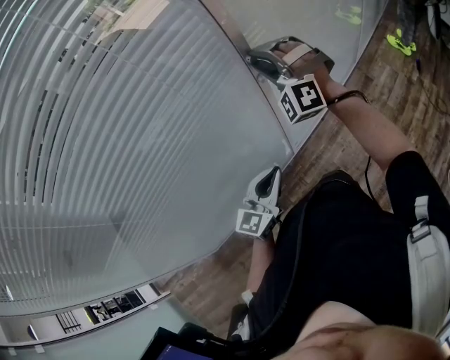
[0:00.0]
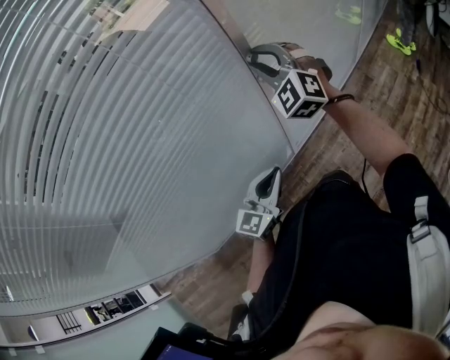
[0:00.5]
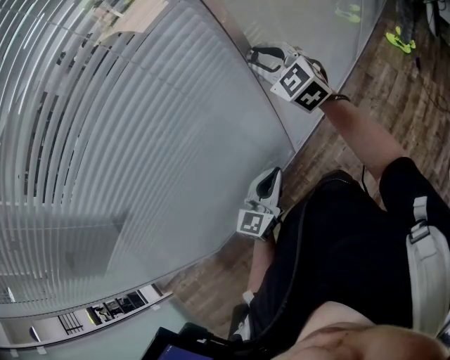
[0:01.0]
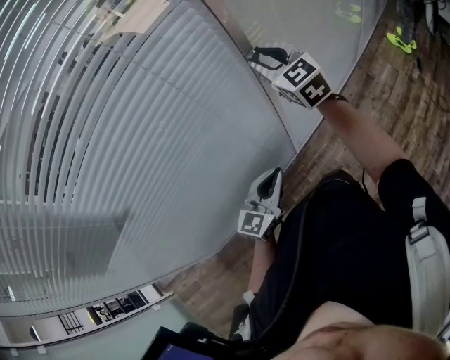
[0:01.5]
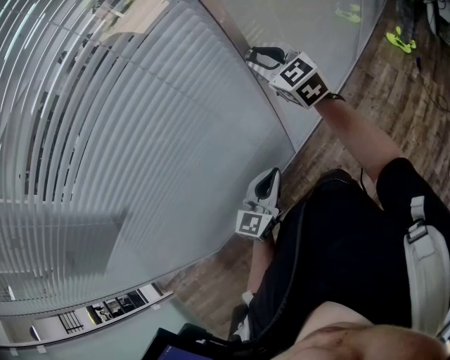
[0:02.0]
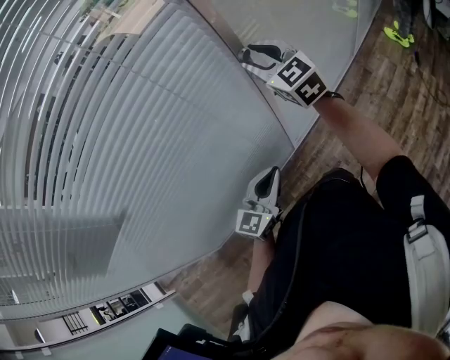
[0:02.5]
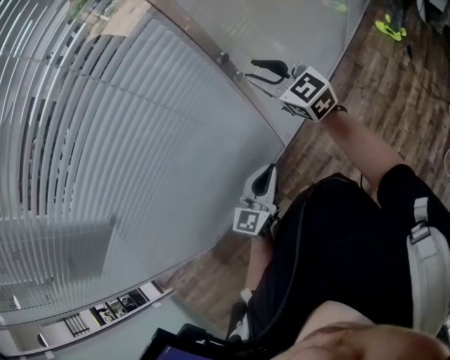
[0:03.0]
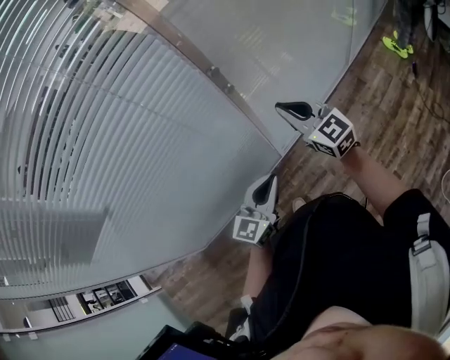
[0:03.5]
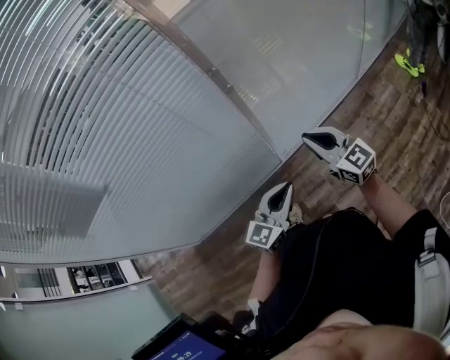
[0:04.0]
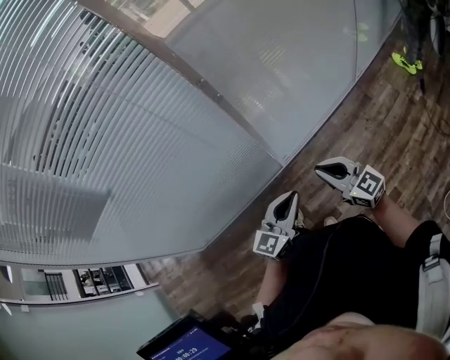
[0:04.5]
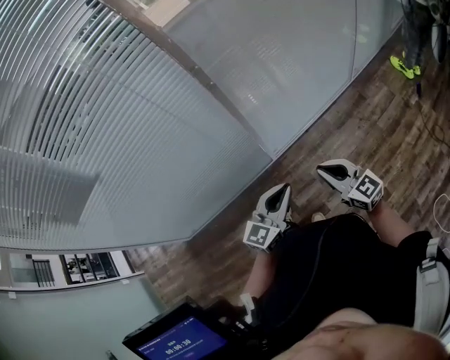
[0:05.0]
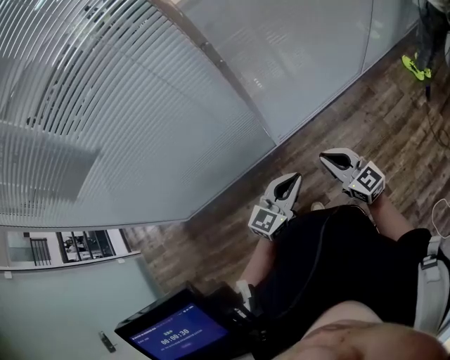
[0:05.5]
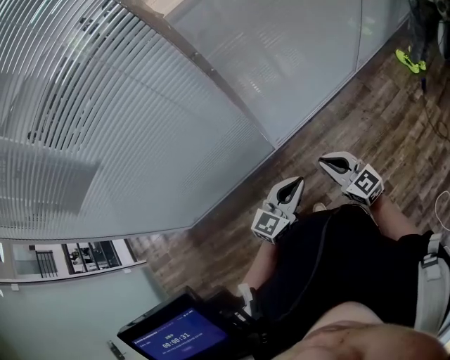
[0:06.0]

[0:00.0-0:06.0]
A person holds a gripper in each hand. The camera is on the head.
0:00.0 to 0:02.0: The right gripper twists about 70 degrees clockwise, seen from behind.
0:02.0 to 0:04.0: The left gripper heads to the right and backward, covering about 20 cm, while the right gripper travels backward, to the right and downward by some 30 cm, turns by approximately 30 degrees, and closes up.
0:04.0 to 0:06.0: The right gripper moves backward, downward and to the right, about 15 cm; the left gripper shifts some 10 cm to the right and backward.

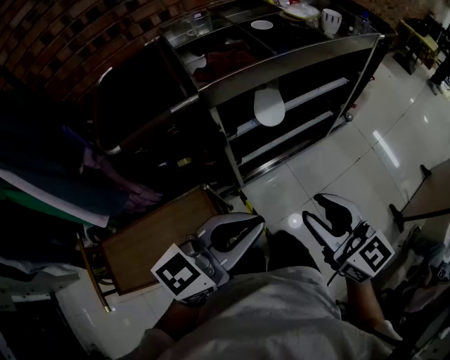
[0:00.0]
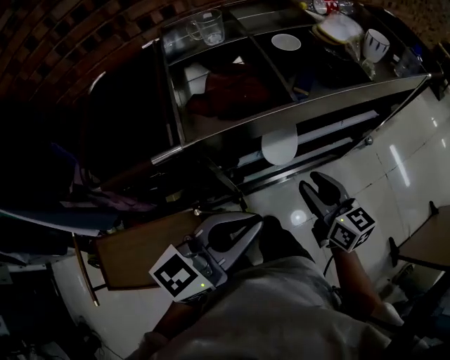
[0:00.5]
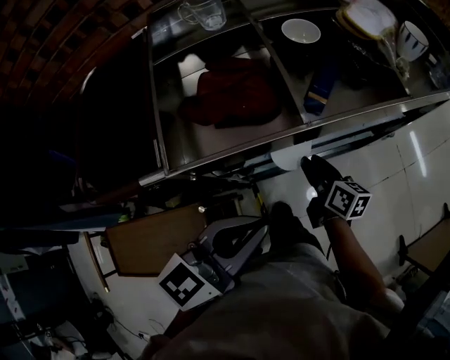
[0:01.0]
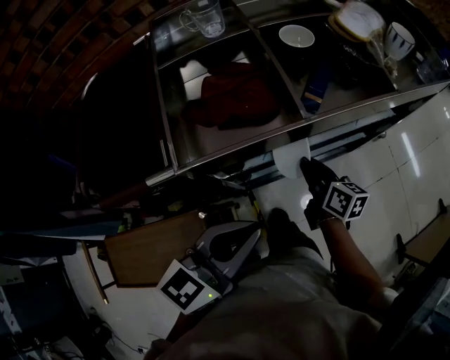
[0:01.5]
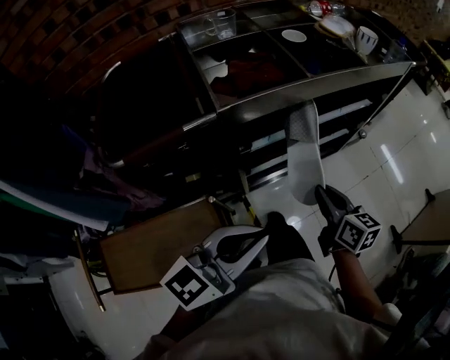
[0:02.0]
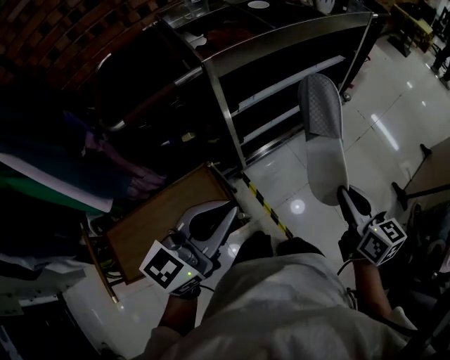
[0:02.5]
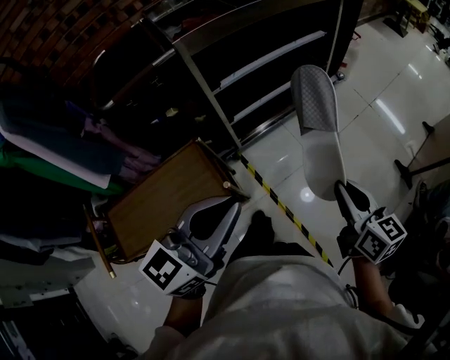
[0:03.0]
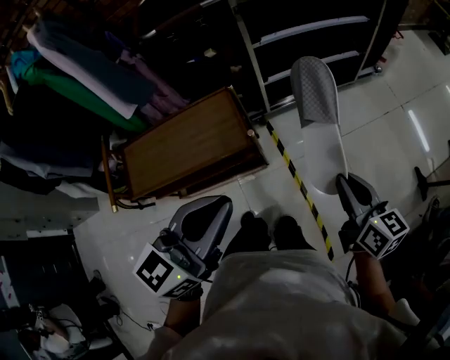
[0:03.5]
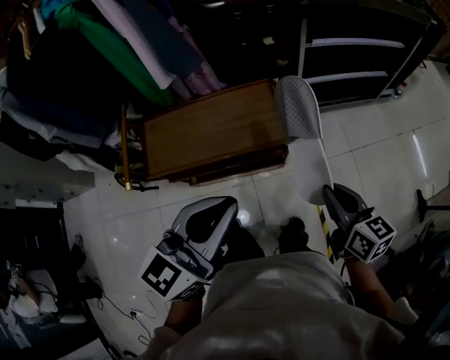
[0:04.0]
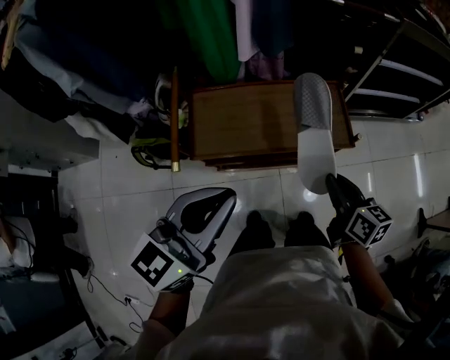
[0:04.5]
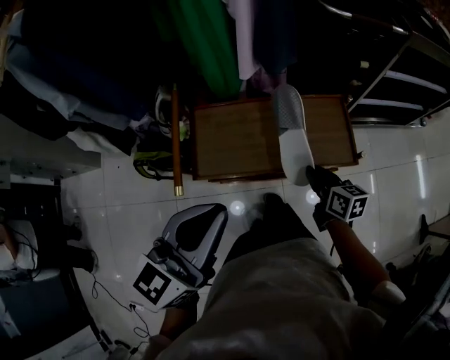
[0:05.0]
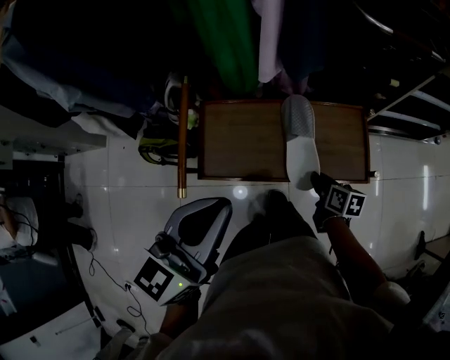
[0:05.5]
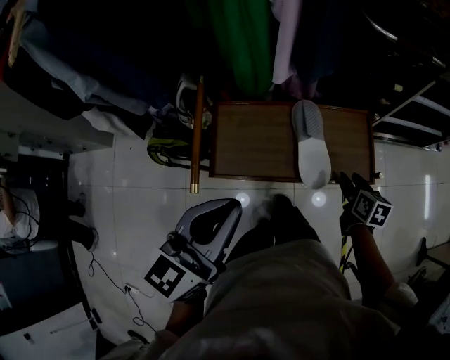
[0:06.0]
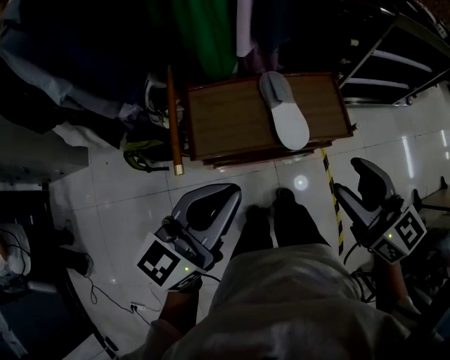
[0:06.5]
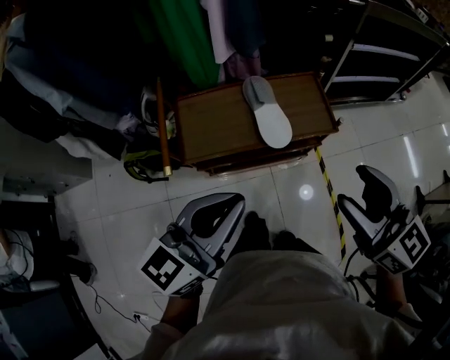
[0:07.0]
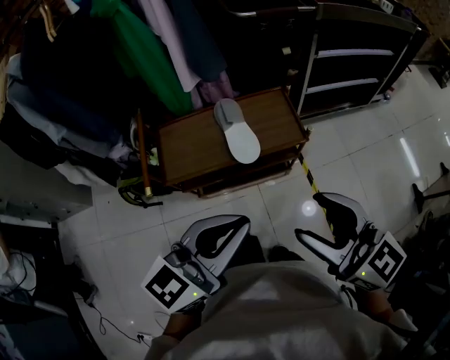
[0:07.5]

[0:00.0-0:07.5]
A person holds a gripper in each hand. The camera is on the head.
0:00.0 to 0:02.0: The left gripper travels forward and back again, about 25 cm each way. Meanwhile the right gripper travels forward and downward by roughly 20 cm, turns by approximately 30 degrees, and closes up.
0:02.0 to 0:04.0: The pair of grippers is taken about 40 cm. The left gripper changes its angle by some 30 degrees.
0:04.0 to 0:05.5: The right gripper shifts roughly 40 cm to the left, downward and forward, and swivels approximately 30 degrees. The left gripper shifts roughly 30 cm to the left and forward.
0:05.5 to 0:07.5: The right gripper heads upward and backward, covering about 50 cm, angles its fingers upward, by roughly 40 degrees, and opens. The left gripper shifts approximately 25 cm backward and to the right, and swivels some 30 degrees.

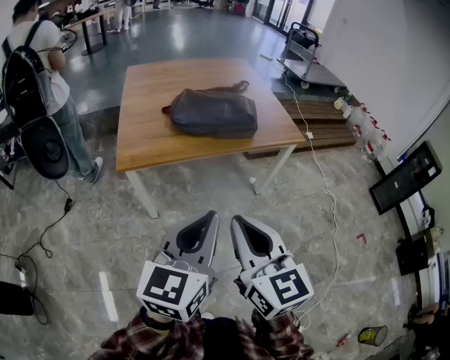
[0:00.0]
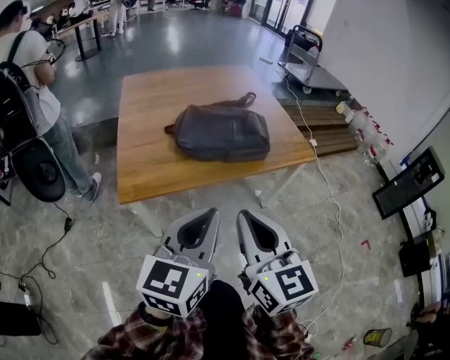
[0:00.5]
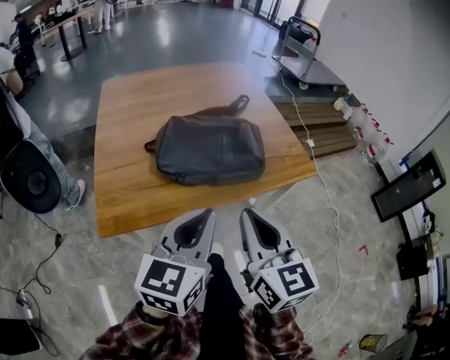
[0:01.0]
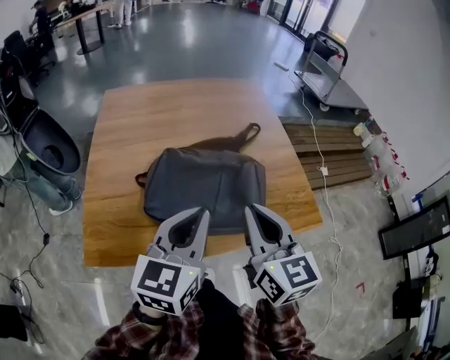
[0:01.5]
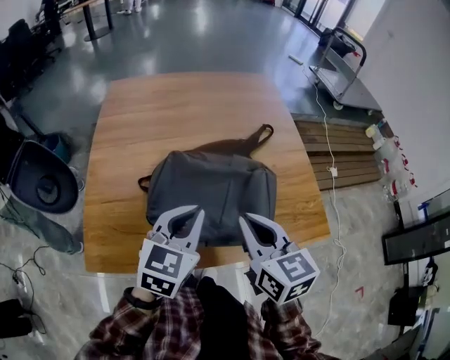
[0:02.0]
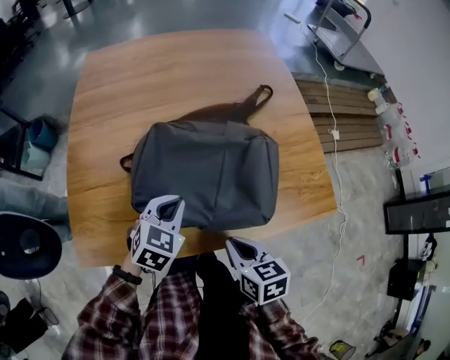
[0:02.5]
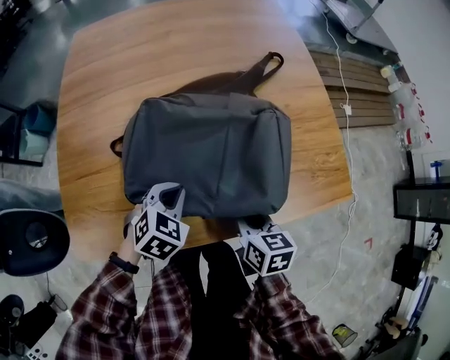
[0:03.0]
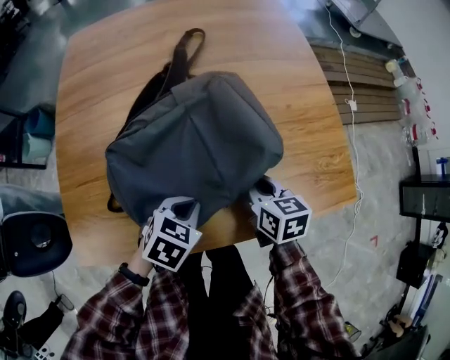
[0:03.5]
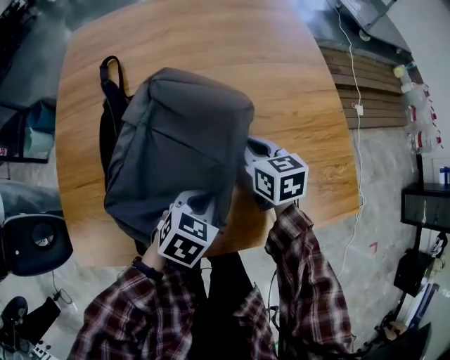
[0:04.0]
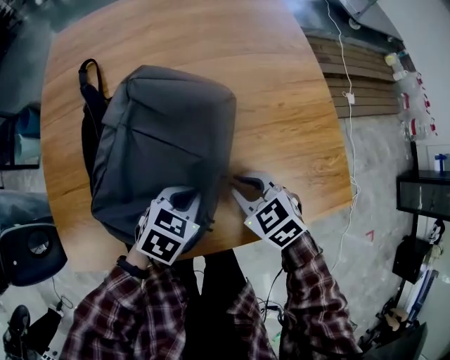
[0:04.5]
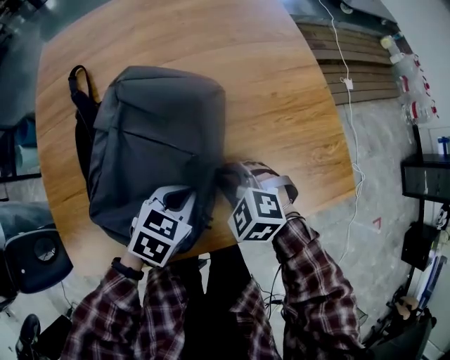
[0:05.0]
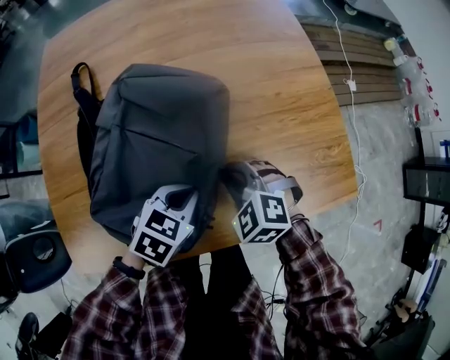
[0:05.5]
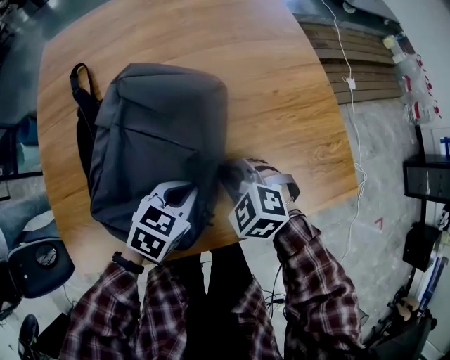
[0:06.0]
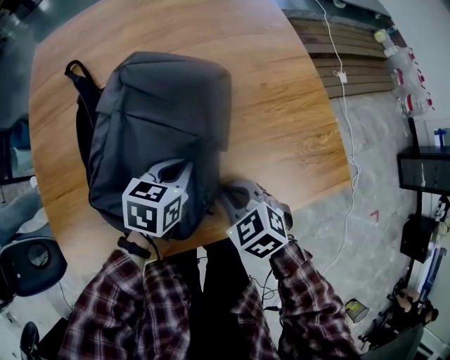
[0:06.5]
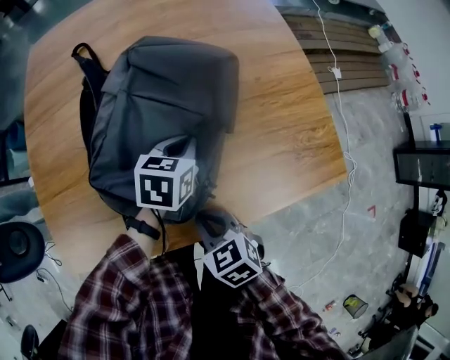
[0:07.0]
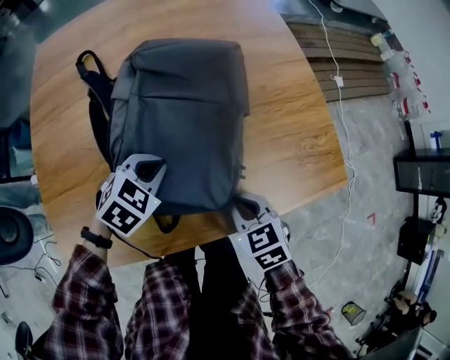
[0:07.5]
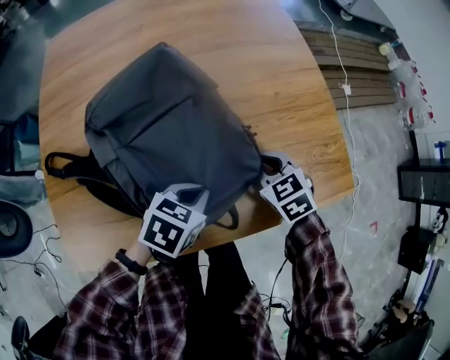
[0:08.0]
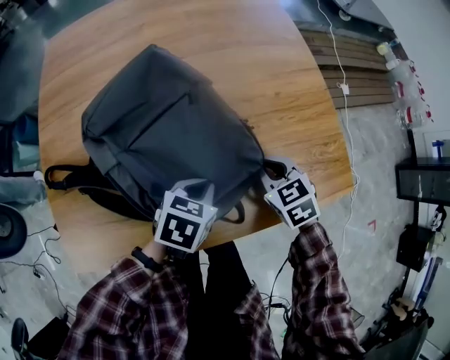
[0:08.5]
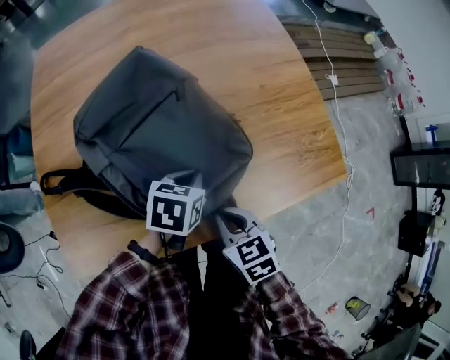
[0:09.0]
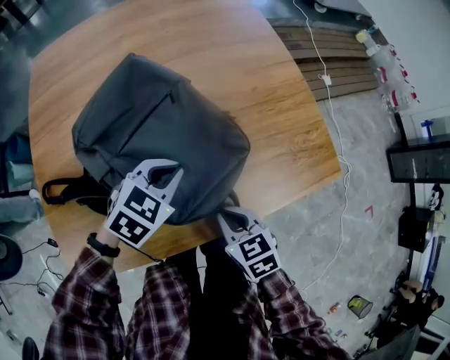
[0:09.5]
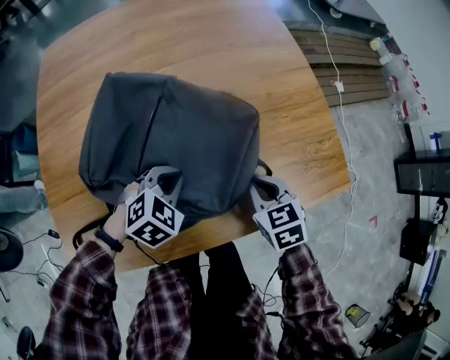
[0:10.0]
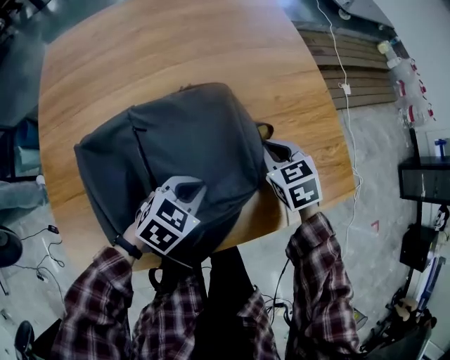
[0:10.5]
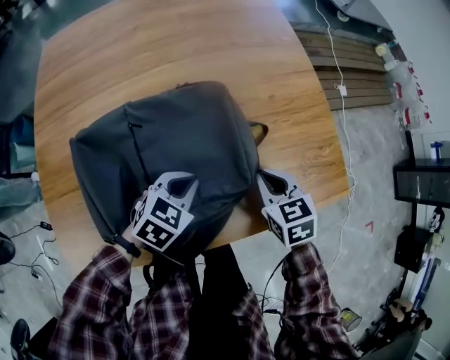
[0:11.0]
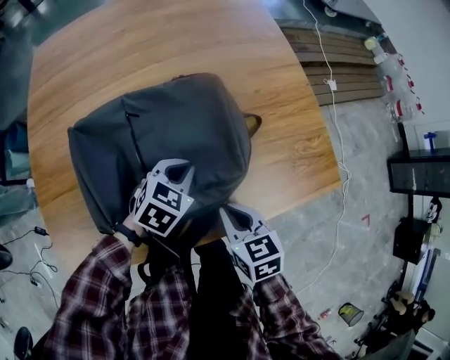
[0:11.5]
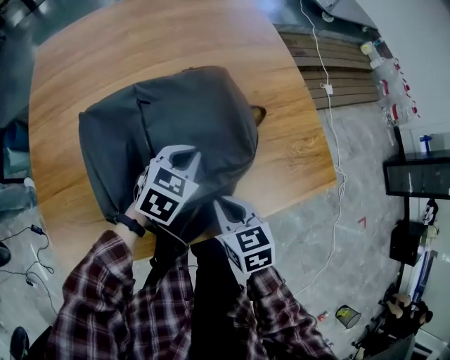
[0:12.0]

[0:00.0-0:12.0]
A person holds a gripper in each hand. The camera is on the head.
0:00.0 to 0:02.0: The pair of grippers is taken forward, roughly 50 cm. The left gripper swivels approximately 20 degrees.
0:02.0 to 0:04.0: The right gripper is displaced downward and forward by roughly 30 cm; the left gripper travels downward by roughly 25 cm, and points its fingers roughly 30 degrees further downward.
0:04.0 to 0:06.0: The right gripper is displaced backward by some 10 cm, and twists about 50 degrees counterclockwise, seen from behind.
0:06.0 to 0:08.0: The left gripper reaches about 10 cm forward, then returns. Meanwhile the right gripper heads to the right, covering about 10 cm, reaches roughly 15 cm backward, then returns, and swivels approximately 30 degrees.
0:08.0 to 0:10.0: The right gripper moves approximately 15 cm backward and comes back. Meanwhile the left gripper heads to the left, covering some 5 cm, and swivels some 40 degrees.
0:10.0 to 0:12.0: The right gripper is displaced backward by approximately 5 cm. The left gripper travels to the right by approximately 5 cm, and changes its angle by roughly 20 degrees.

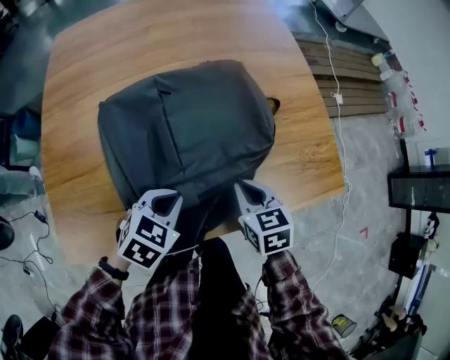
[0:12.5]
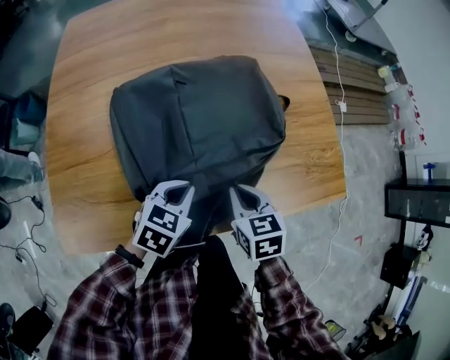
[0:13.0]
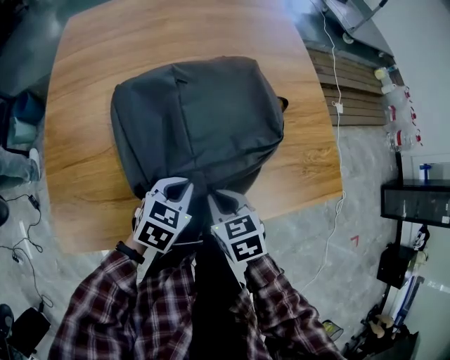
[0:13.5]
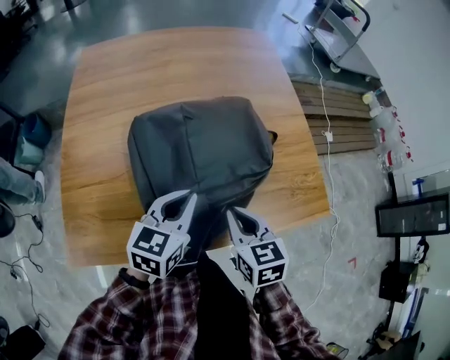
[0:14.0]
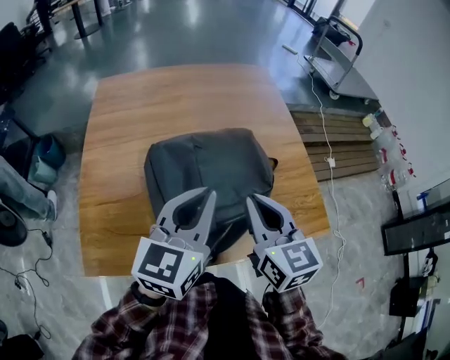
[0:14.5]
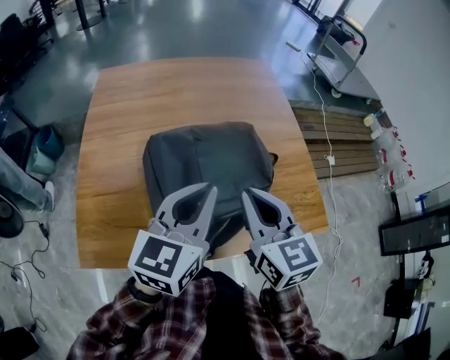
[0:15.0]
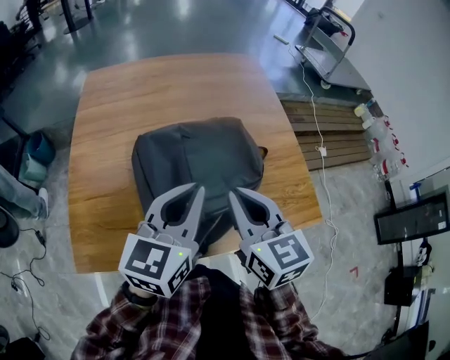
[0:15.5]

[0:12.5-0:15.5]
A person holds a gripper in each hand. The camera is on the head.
0:12.5 to 0:14.0: The two grippers go roughly 10 cm upward. The left gripper rotates roughly 40 degrees.
0:14.0 to 0:15.5: Both grippers move upward, some 15 cm. The right gripper swivels about 20 degrees.
